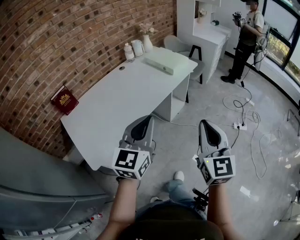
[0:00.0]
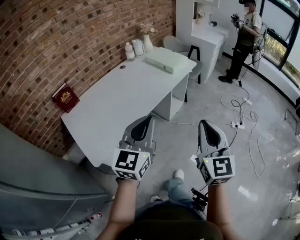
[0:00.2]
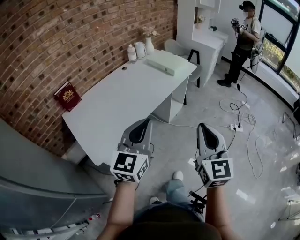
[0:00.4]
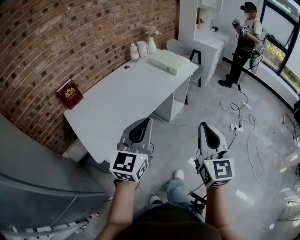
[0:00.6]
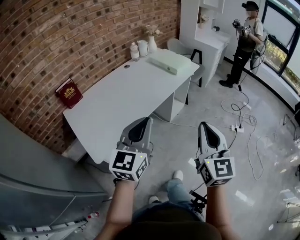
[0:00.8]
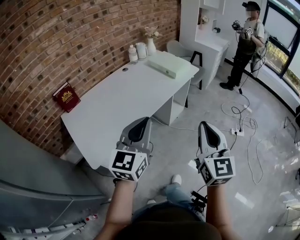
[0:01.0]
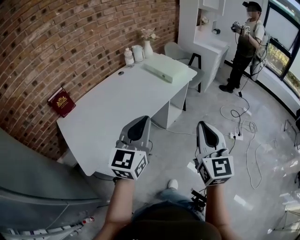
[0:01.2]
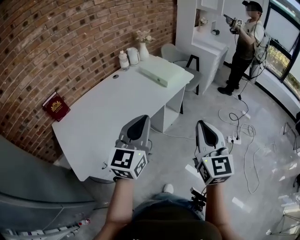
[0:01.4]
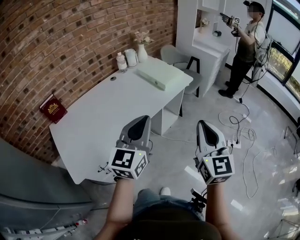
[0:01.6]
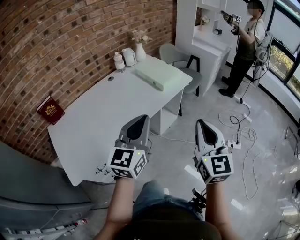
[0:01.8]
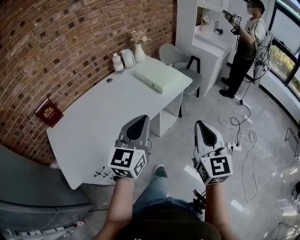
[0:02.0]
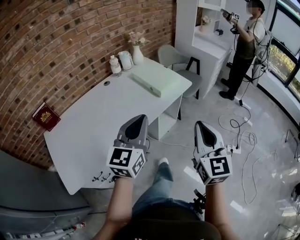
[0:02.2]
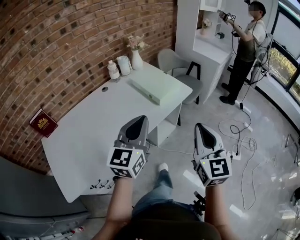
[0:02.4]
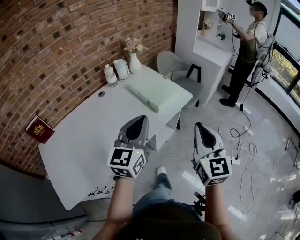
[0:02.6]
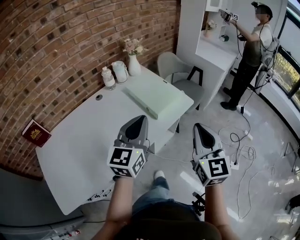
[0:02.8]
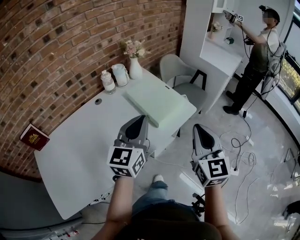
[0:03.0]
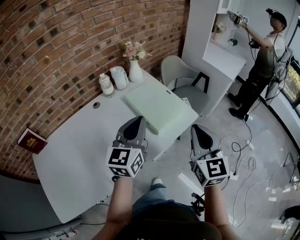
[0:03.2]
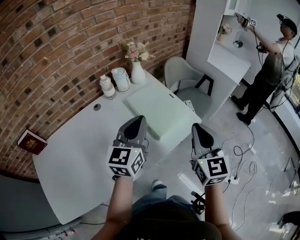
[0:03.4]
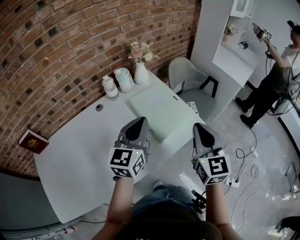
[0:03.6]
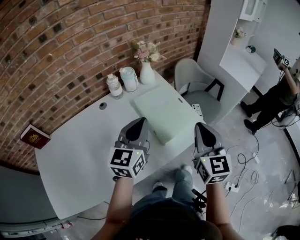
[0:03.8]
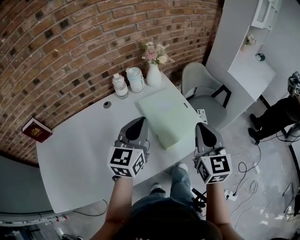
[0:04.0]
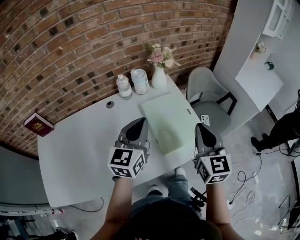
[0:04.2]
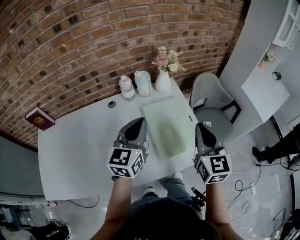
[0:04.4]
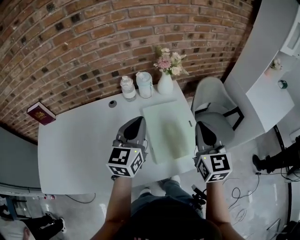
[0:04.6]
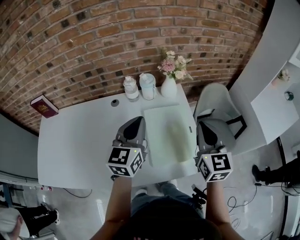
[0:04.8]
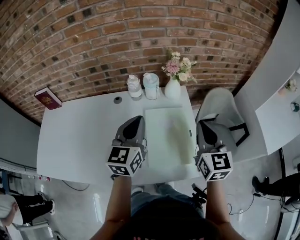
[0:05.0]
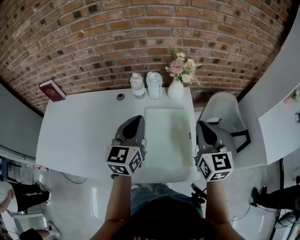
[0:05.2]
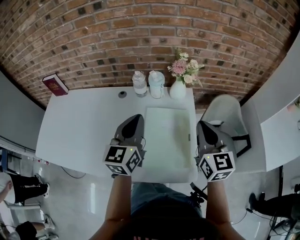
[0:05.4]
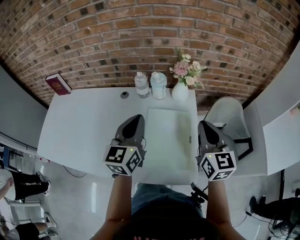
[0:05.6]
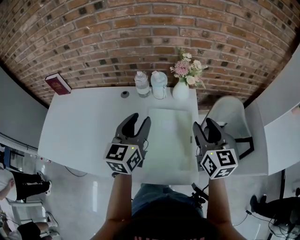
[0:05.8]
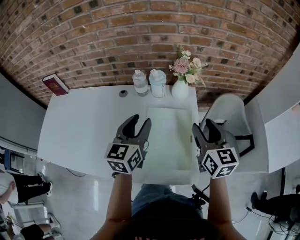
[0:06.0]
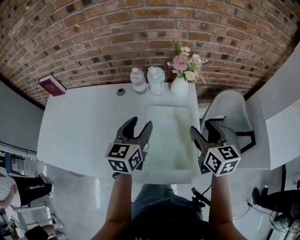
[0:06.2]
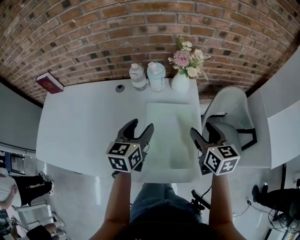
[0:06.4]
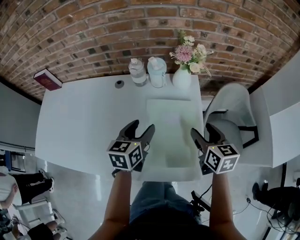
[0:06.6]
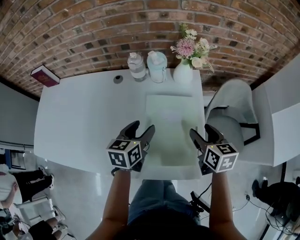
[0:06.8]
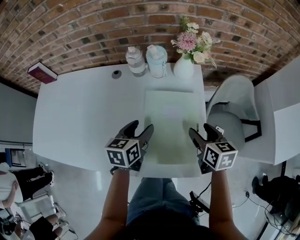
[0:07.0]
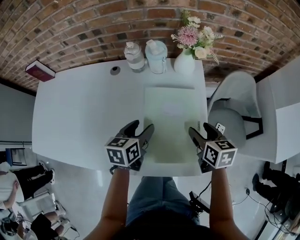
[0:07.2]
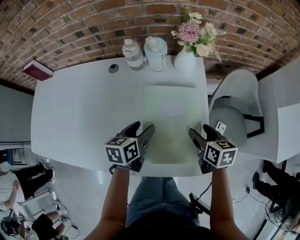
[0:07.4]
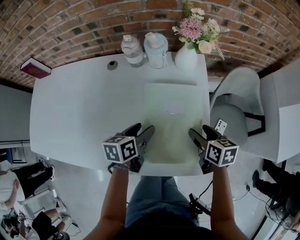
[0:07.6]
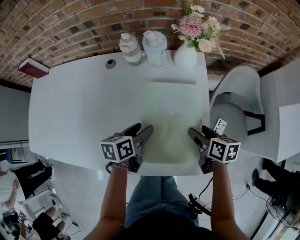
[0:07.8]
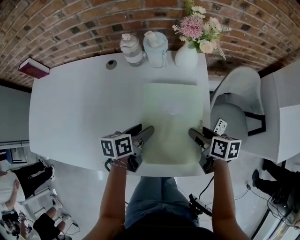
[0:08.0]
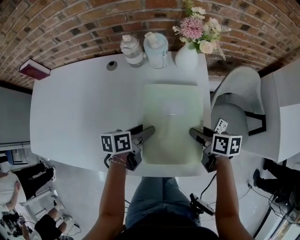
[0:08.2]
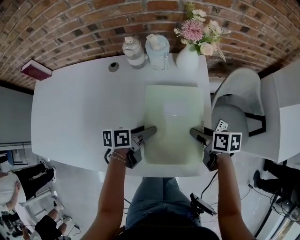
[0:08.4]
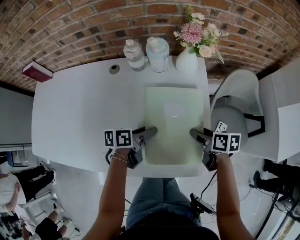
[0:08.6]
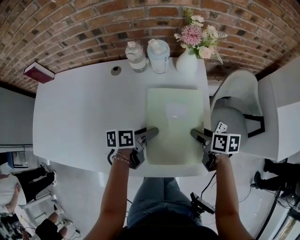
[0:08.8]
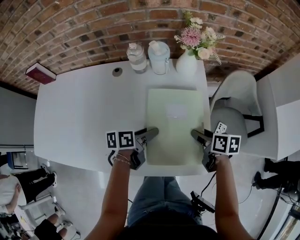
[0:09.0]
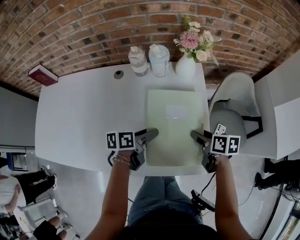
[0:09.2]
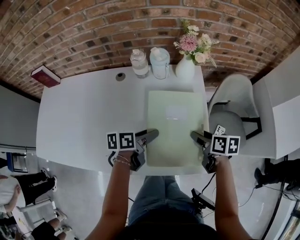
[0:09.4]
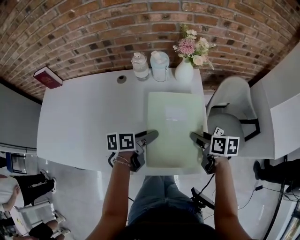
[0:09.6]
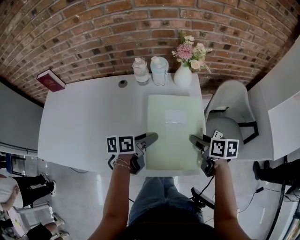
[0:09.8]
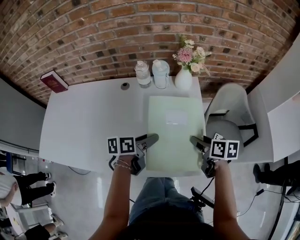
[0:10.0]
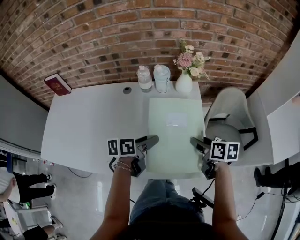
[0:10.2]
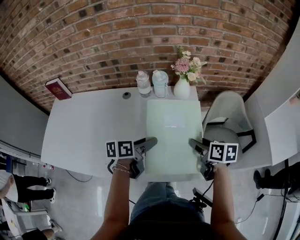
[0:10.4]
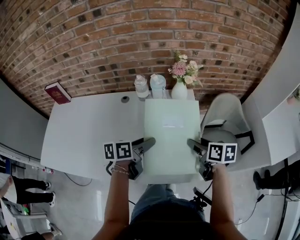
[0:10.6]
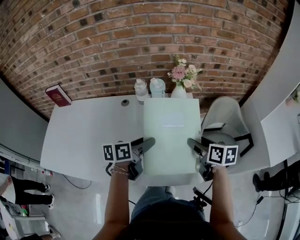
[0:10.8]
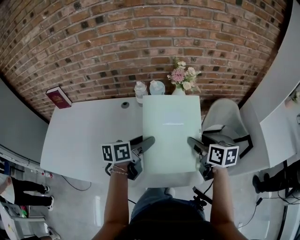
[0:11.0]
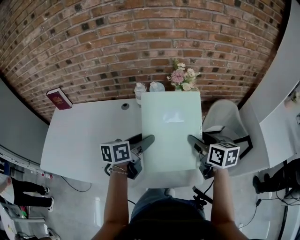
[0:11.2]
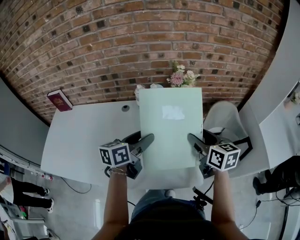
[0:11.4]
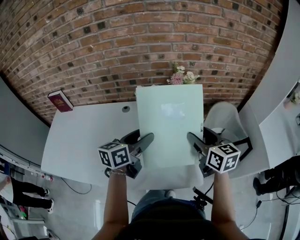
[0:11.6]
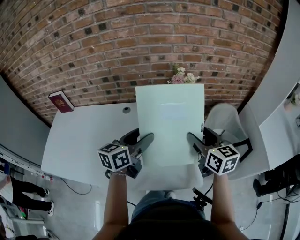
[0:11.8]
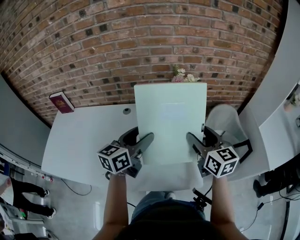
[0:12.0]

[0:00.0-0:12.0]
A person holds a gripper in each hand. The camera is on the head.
0.0 to 1.6 s: The left gripper travels forward by approximately 10 cm. Meanwhile the right gripper goes approximately 15 cm forward and to the right.
1.6 to 3.0 s: The two grippers go approximately 35 cm forward.
3.0 to 4.4 s: The two grippers go about 25 cm forward. The right gripper turns by some 20 degrees, while the left gripper swivels roughly 20 degrees.
4.4 to 6.0 s: The left gripper shifts by approximately 5 cm, rotates some 20 degrees, and opens up. The right gripper moves approximately 15 cm, rotates approximately 30 degrees, and opens its fingers.
6.0 to 7.6 s: The grippers both shift downward by approximately 20 cm. The right gripper turns by about 40 degrees. The left gripper turns by approximately 40 degrees.
9.0 to 10.4 s: The grippers both shift upward by approximately 10 cm.
10.4 to 12.0 s: Both grippers move upward, some 15 cm. The right gripper changes its angle by some 40 degrees. Meanwhile the left gripper turns by about 40 degrees.

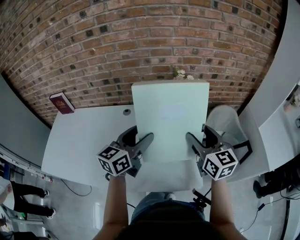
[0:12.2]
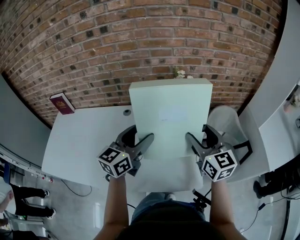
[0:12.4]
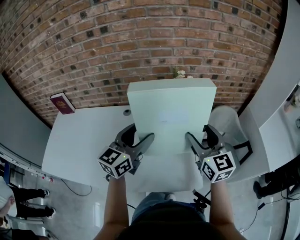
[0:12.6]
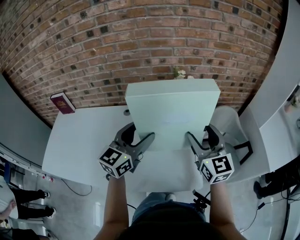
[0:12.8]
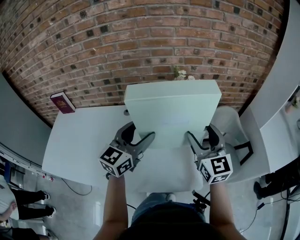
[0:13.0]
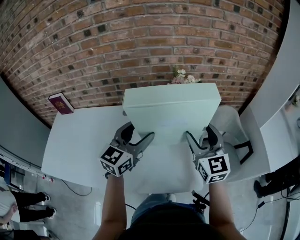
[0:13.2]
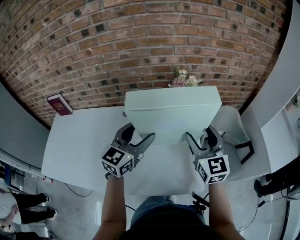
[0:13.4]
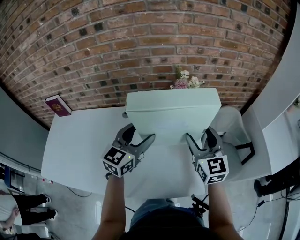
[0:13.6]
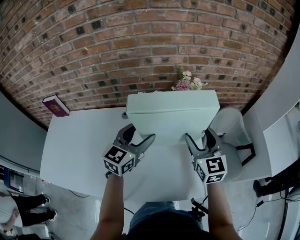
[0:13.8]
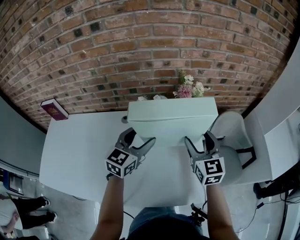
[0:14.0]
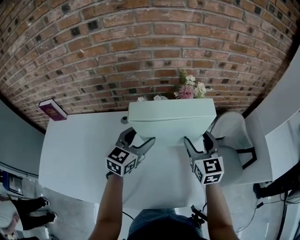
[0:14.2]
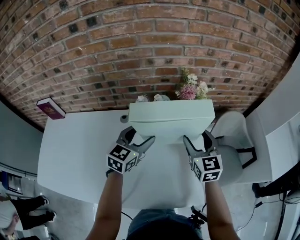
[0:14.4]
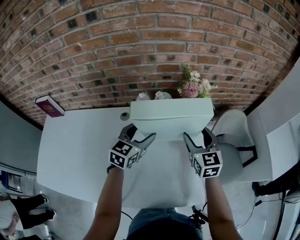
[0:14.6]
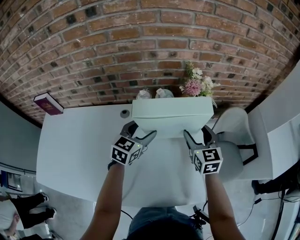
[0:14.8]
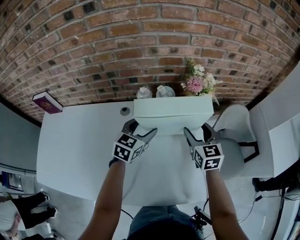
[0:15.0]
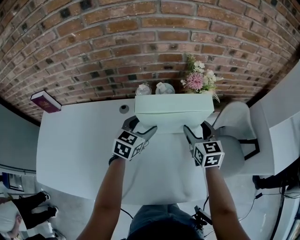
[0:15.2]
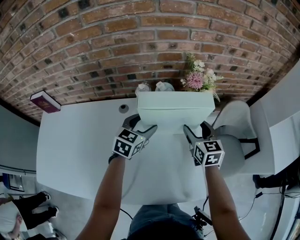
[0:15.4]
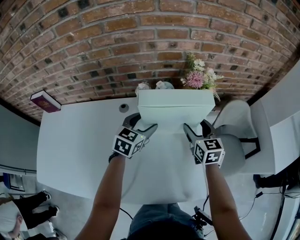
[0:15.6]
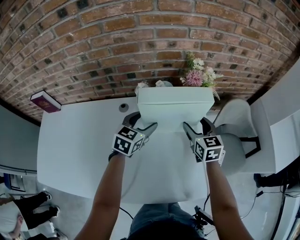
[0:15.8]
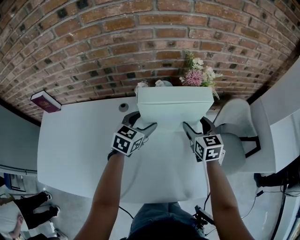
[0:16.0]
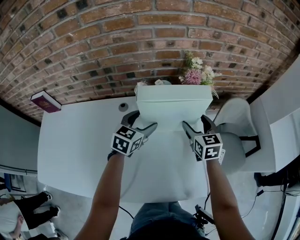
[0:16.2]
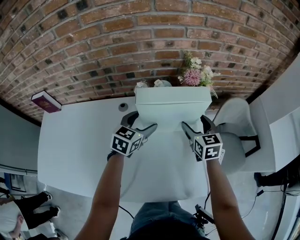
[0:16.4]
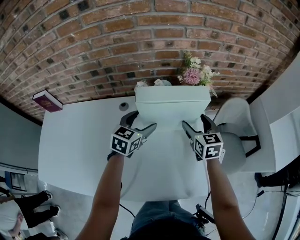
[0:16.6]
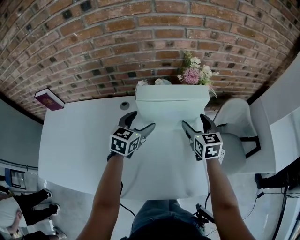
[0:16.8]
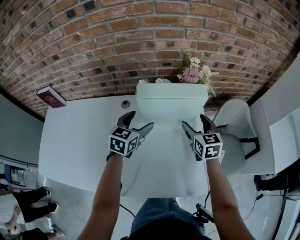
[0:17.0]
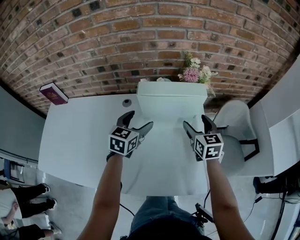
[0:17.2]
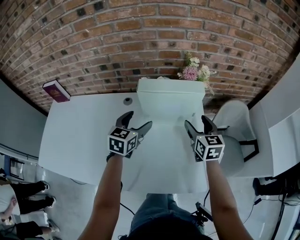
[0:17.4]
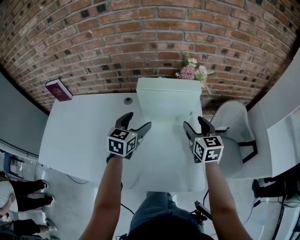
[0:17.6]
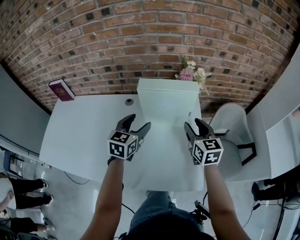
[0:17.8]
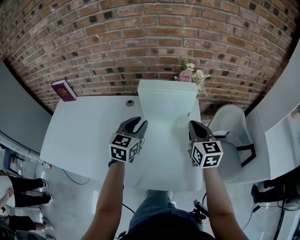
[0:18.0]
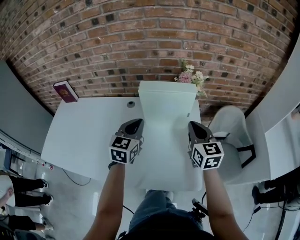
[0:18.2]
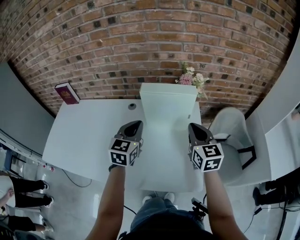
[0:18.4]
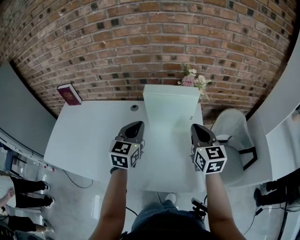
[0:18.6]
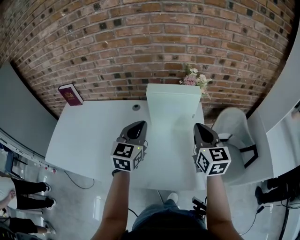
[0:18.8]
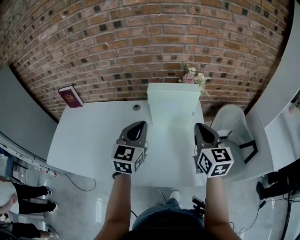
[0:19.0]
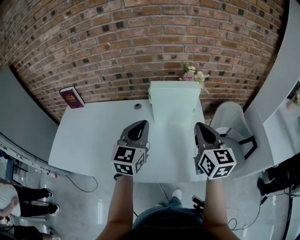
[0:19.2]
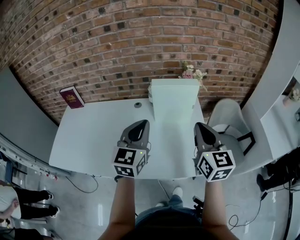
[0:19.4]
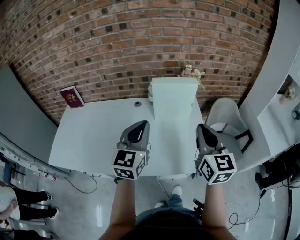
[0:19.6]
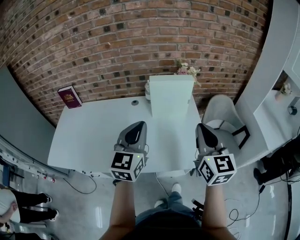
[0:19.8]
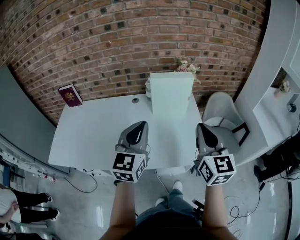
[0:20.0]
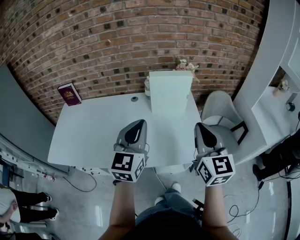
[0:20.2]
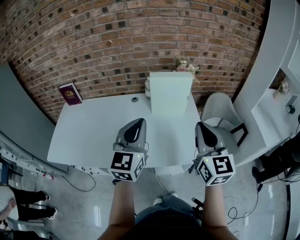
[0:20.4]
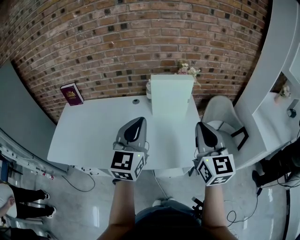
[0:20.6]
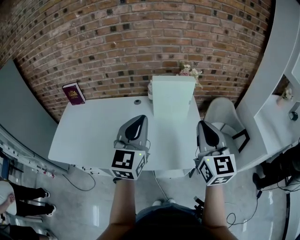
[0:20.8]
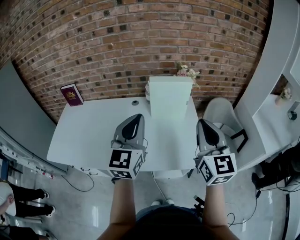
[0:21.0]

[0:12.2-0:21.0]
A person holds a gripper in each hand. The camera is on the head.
12.2 to 13.6 s: The left gripper moves forward, some 5 cm.
13.6 to 15.2 s: Both grippers travel together downward and forward, some 20 cm. The left gripper rotates about 20 degrees.
15.2 to 16.6 s: The grippers stay close to where they were, moving slightly.
16.6 to 18.0 s: Both grippers travel together backward and upward, roughly 15 cm. The left gripper closes. The right gripper closes its fingers.
18.0 to 19.6 s: Both grippers move backward and upward, roughly 20 cm.
19.6 to 21.0 s: The left gripper shifts about 5 cm upward. Meanwhile the right gripper moves roughly 5 cm.

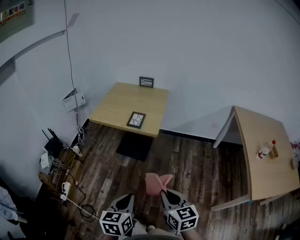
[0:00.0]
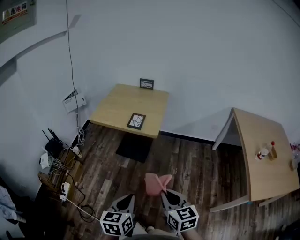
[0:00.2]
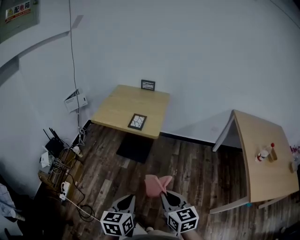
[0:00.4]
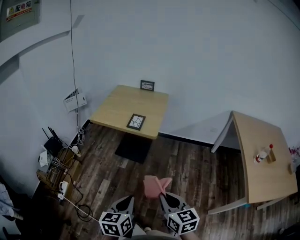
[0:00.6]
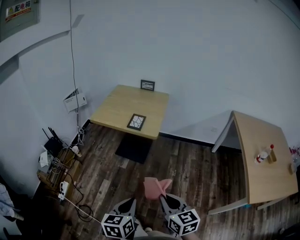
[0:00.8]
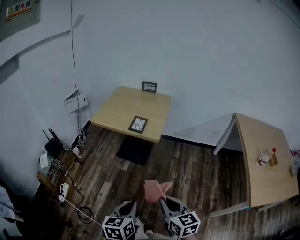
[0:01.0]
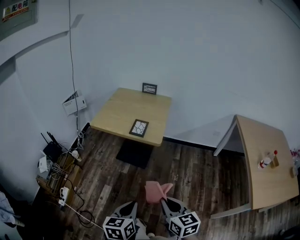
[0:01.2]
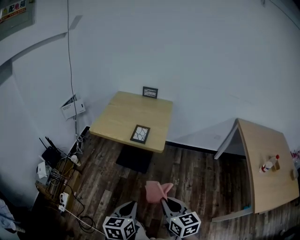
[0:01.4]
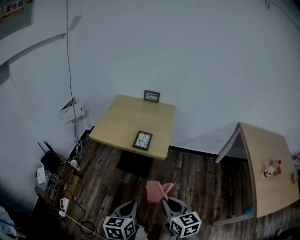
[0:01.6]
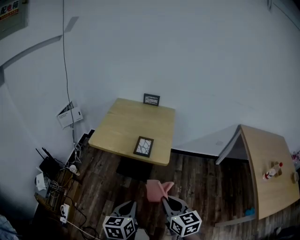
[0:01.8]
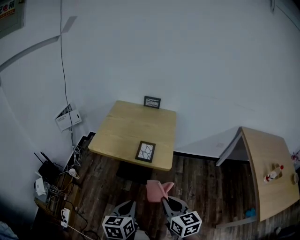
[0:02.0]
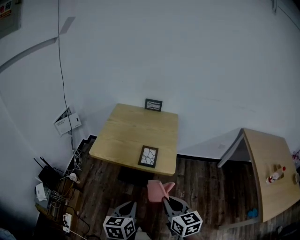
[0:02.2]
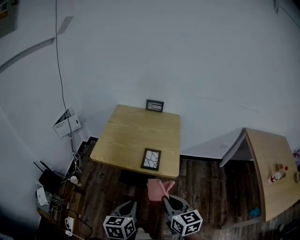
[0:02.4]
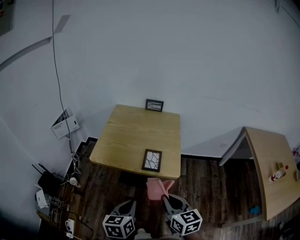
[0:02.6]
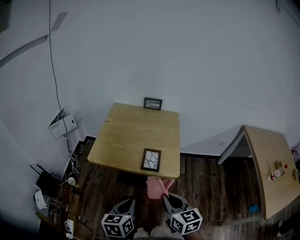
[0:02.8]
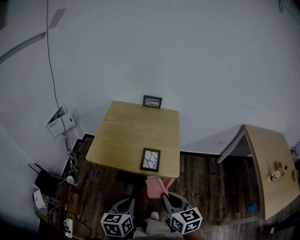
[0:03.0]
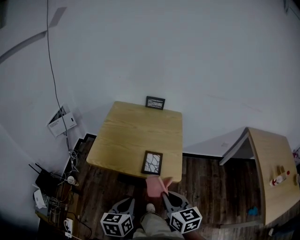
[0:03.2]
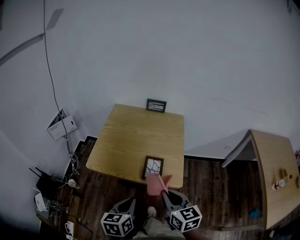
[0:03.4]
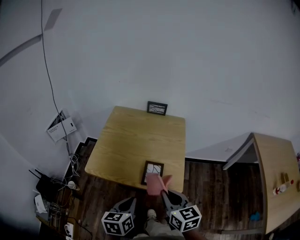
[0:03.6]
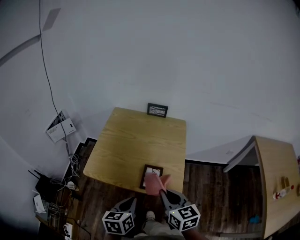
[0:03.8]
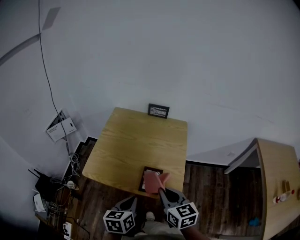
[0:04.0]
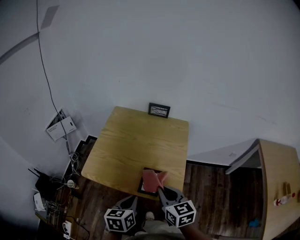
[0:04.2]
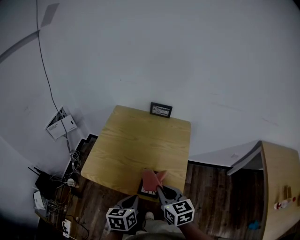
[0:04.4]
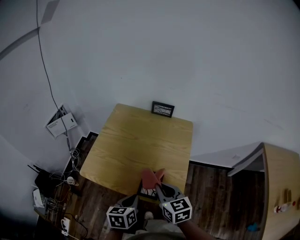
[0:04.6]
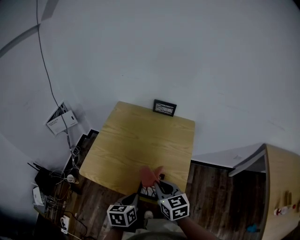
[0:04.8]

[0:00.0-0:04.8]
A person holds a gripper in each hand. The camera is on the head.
0.0 to 1.6 s: The left gripper is displaced forward by roughly 10 cm, while the right gripper is displaced forward and to the left by roughly 15 cm.
1.6 to 3.2 s: The right gripper is displaced forward by roughly 20 cm. The left gripper travels forward and to the left by approximately 25 cm.
3.2 to 4.8 s: The right gripper is displaced forward by about 20 cm. Meanwhile the left gripper shifts approximately 20 cm forward and downward.
